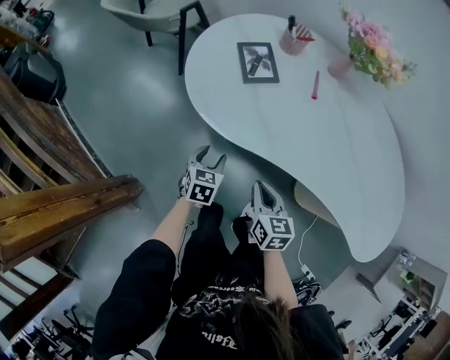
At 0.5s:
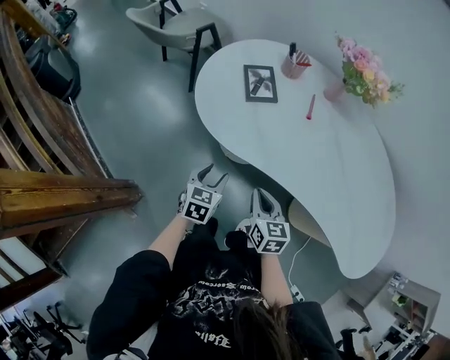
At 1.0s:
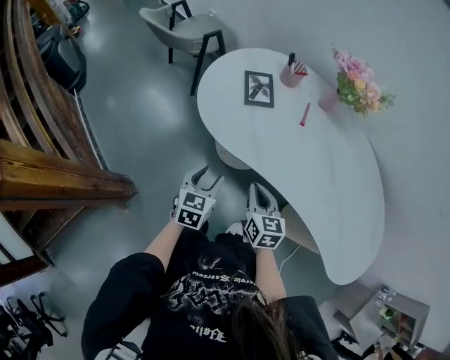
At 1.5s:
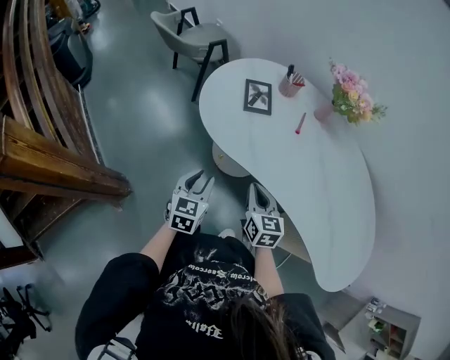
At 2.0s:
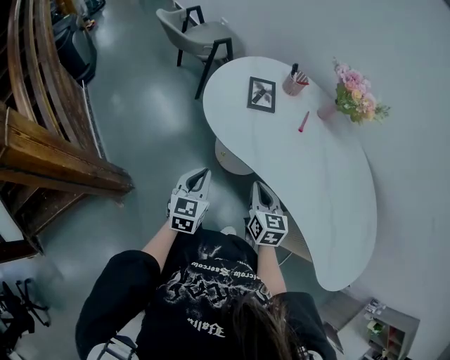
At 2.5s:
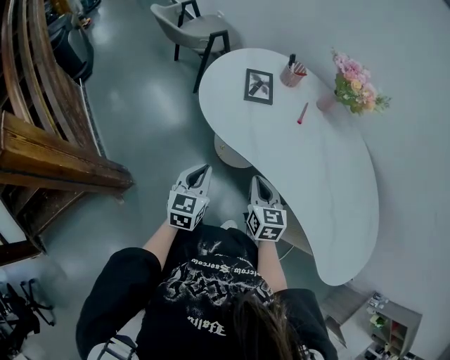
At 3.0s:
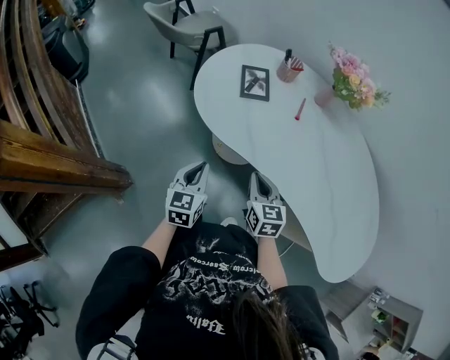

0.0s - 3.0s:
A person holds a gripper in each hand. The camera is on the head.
0.0s - 1.5s: The right gripper shifts approximately 10 cm upward, while the left gripper is displaced upward and backward by approximately 20 cm, turns by roughly 20 degrees, and closes.
1.5s - 3.0s: The left gripper closes up.

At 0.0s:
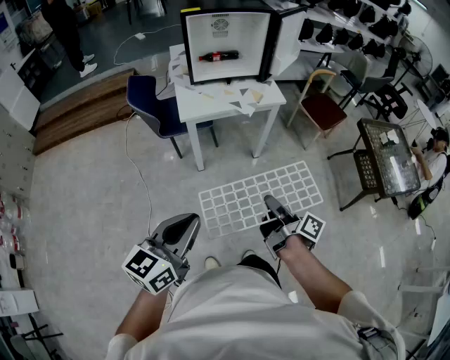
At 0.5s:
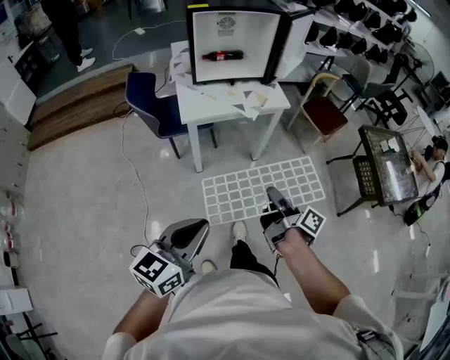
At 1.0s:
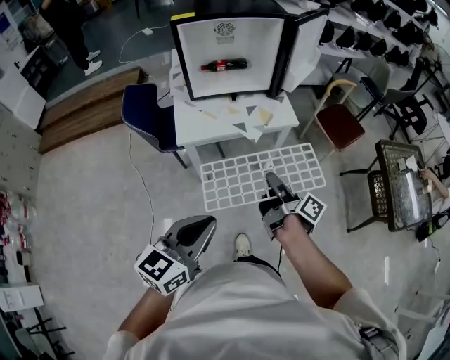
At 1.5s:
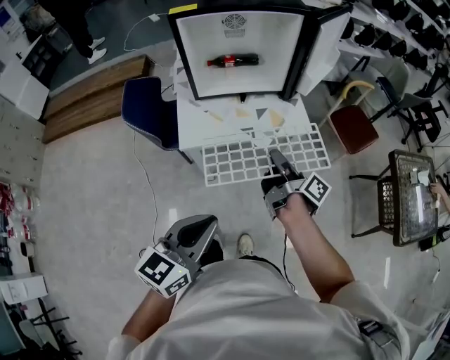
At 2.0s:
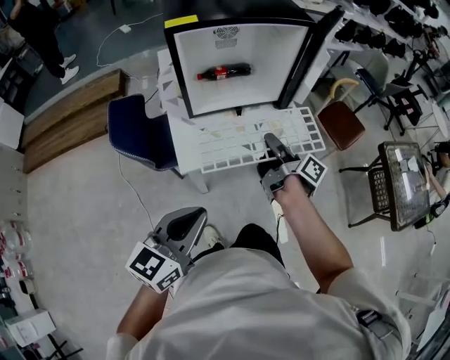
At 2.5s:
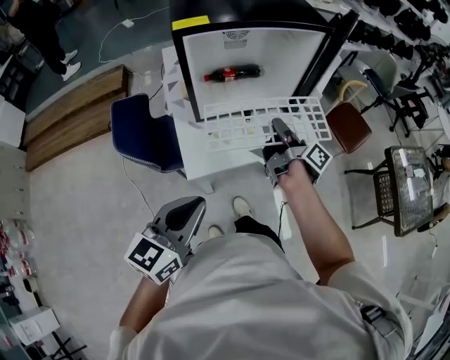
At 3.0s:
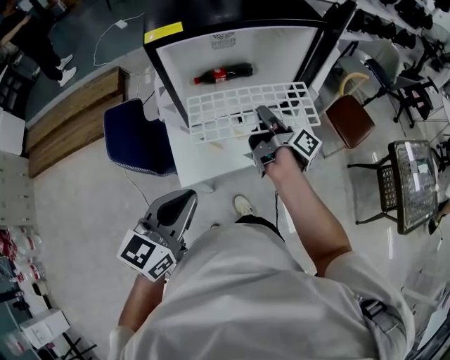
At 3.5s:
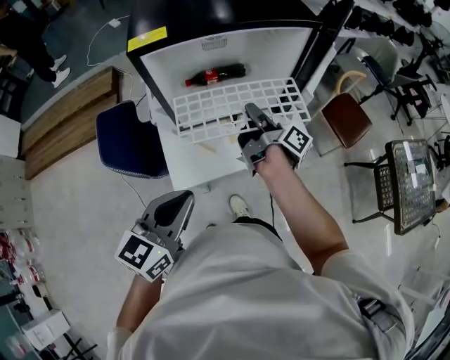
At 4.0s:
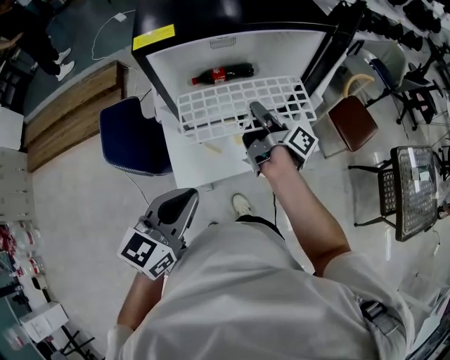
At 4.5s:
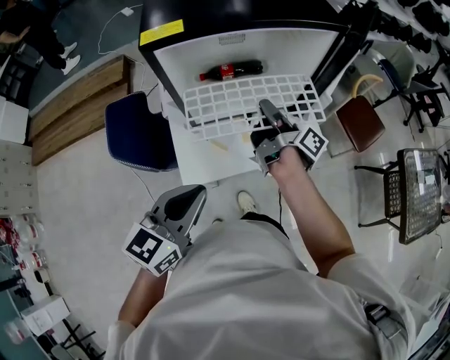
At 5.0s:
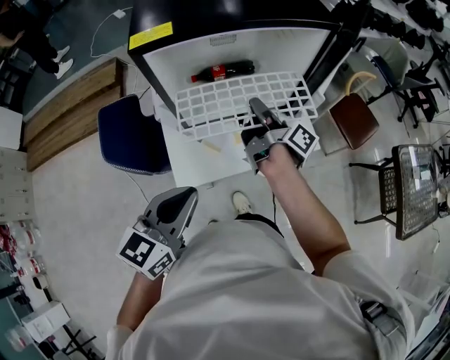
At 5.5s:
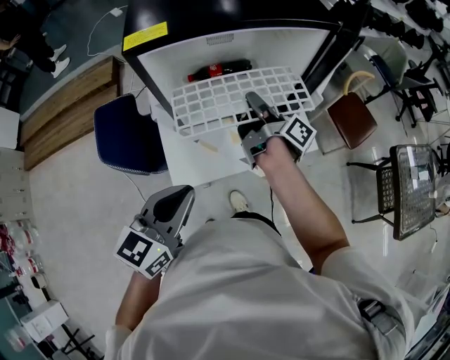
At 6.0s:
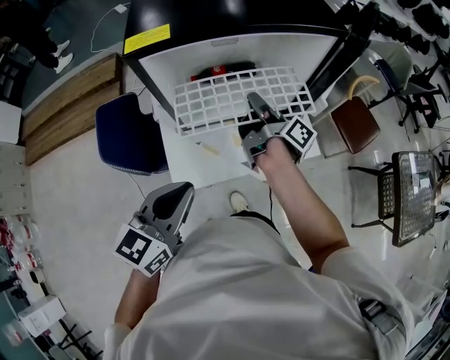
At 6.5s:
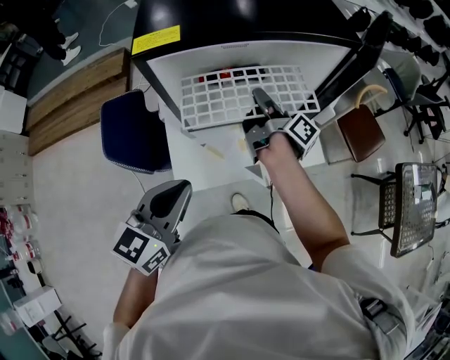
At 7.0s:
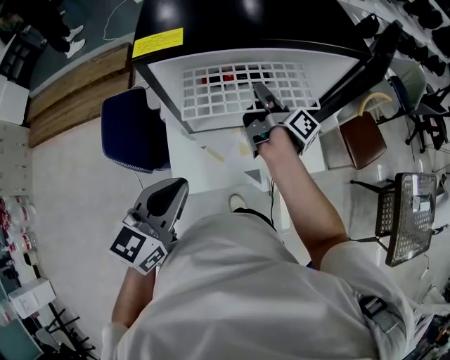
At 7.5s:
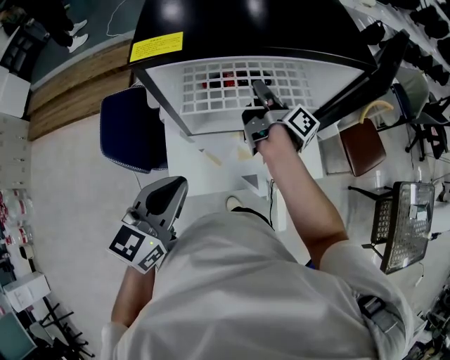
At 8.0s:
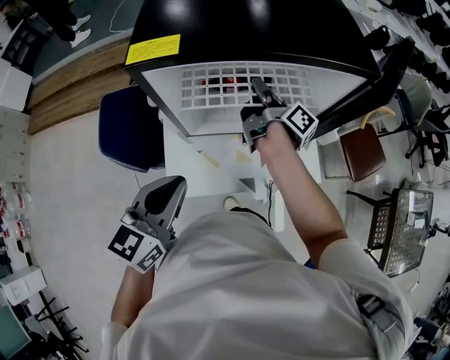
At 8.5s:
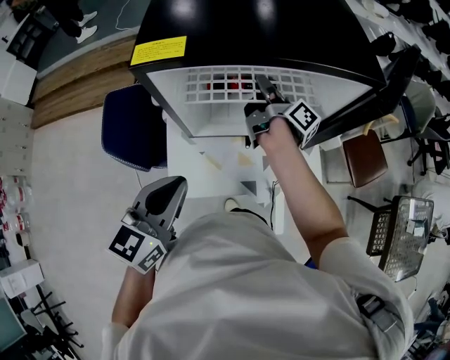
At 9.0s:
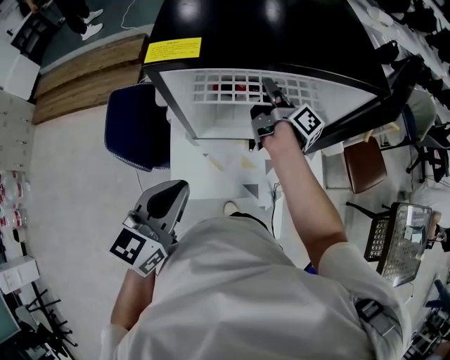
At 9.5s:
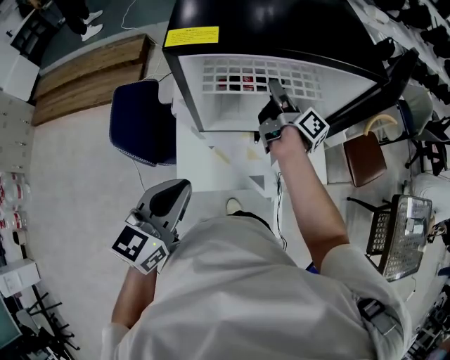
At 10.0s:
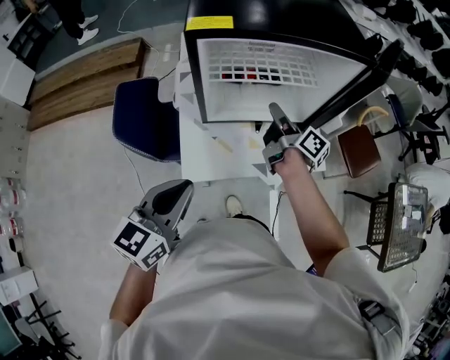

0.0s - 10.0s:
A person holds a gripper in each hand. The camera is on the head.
0.0s - 2.0s: The left gripper ends up some 35 cm from where it was.
2.0s - 4.0s: The left gripper moves some 15 cm.
6.0s - 8.0s: The left gripper ends up some 5 cm from where it was.
8.0s - 10.0s: The left gripper ends up roughly 10 cm from where it was.

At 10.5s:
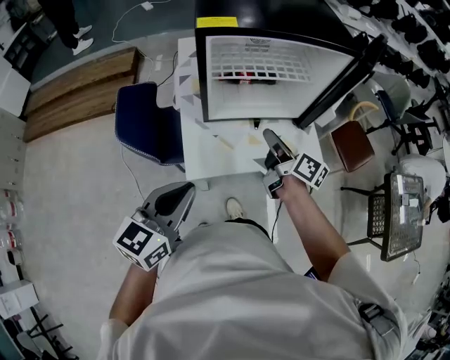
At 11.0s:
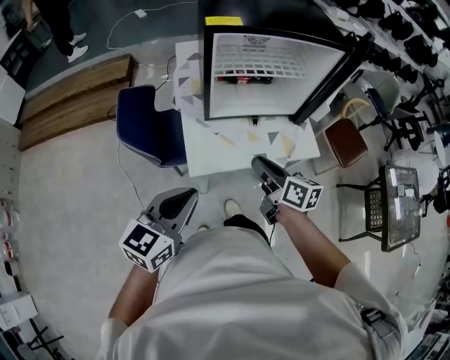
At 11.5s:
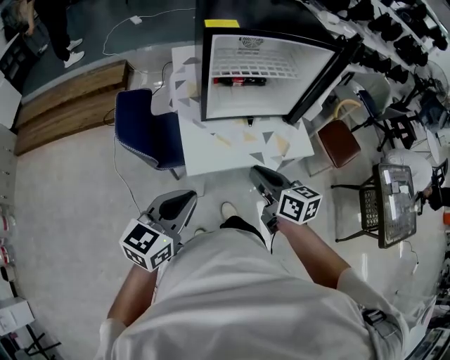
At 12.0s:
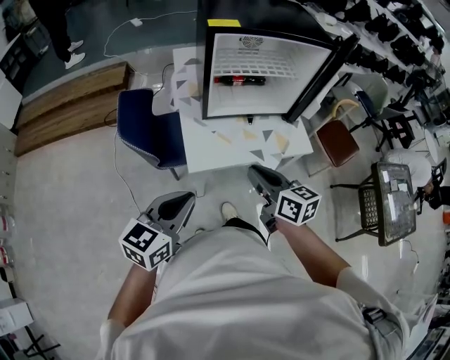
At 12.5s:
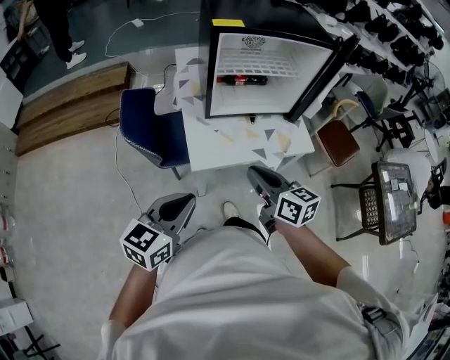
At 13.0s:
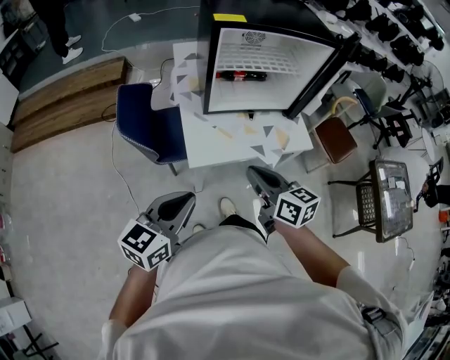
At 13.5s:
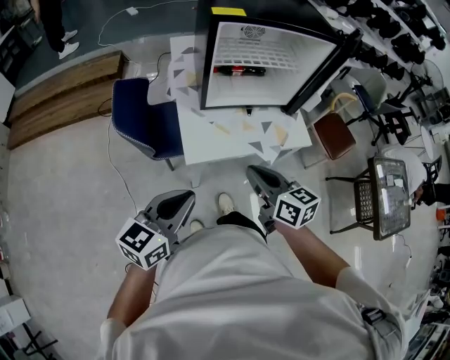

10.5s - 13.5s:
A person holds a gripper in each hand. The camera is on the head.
10.5s - 12.0s: The left gripper changes place by roughly 10 cm.

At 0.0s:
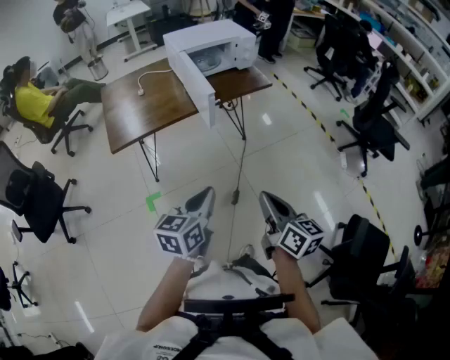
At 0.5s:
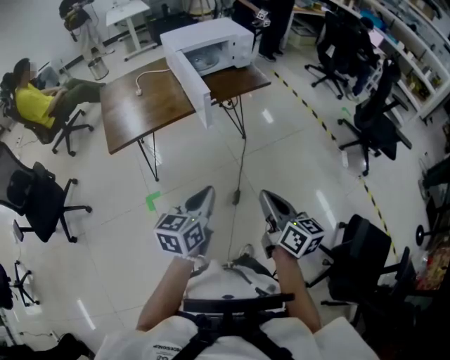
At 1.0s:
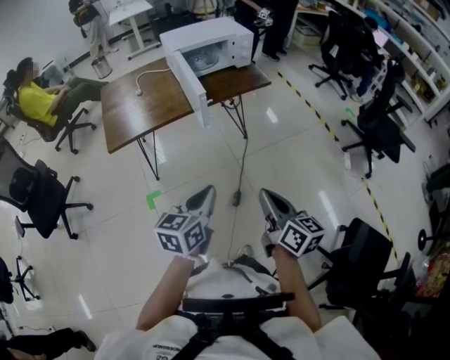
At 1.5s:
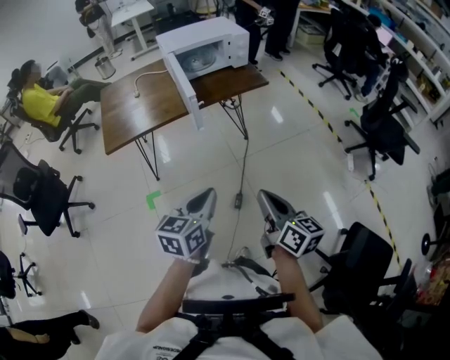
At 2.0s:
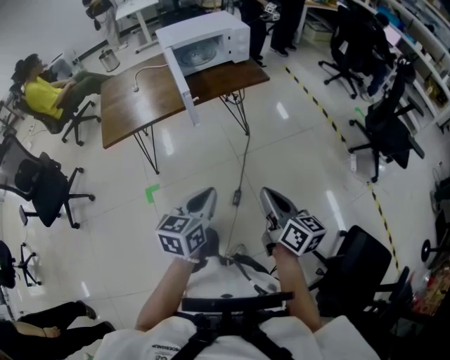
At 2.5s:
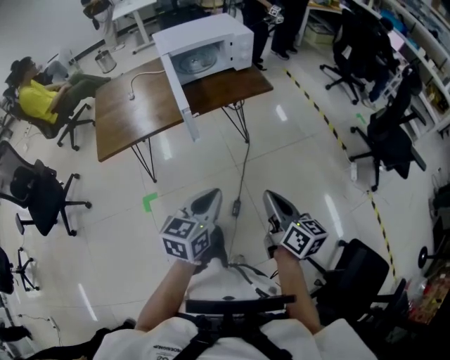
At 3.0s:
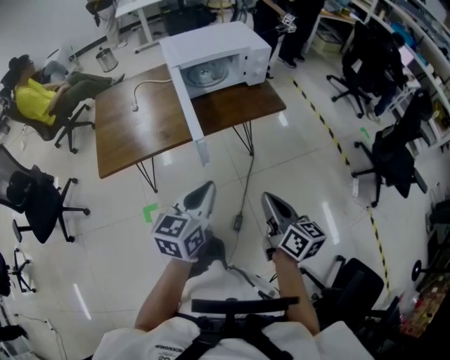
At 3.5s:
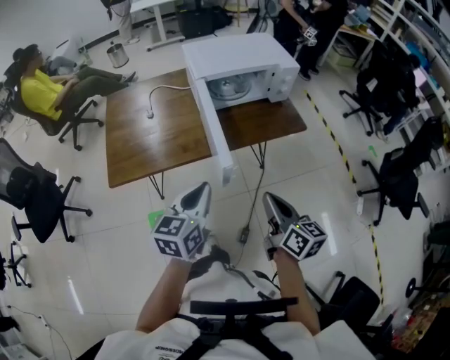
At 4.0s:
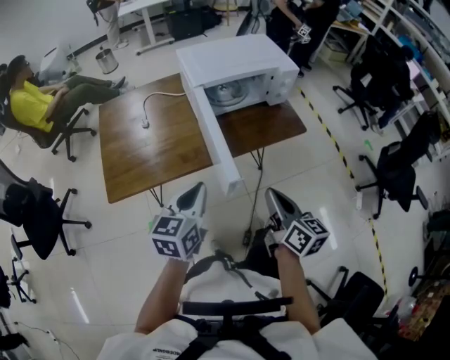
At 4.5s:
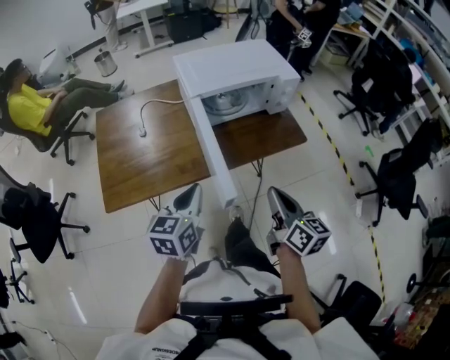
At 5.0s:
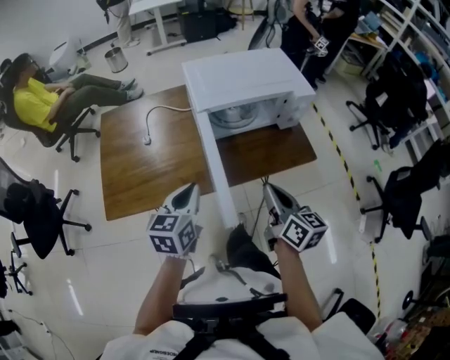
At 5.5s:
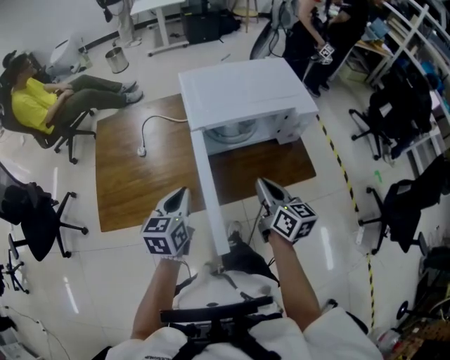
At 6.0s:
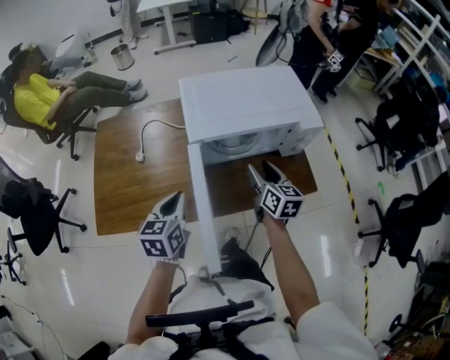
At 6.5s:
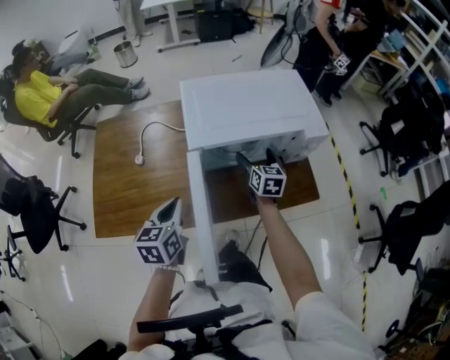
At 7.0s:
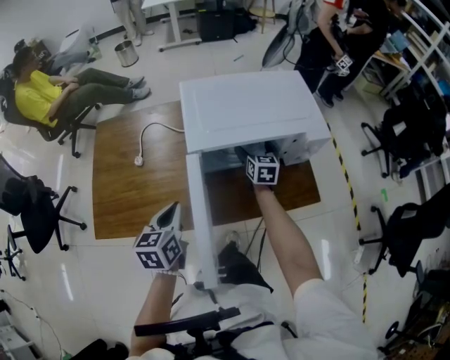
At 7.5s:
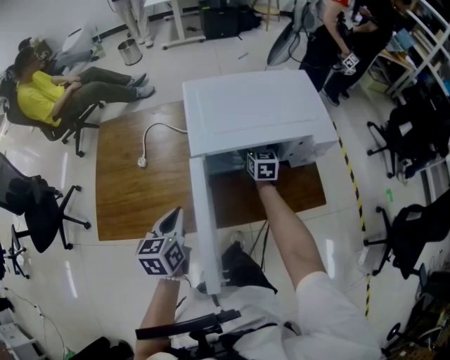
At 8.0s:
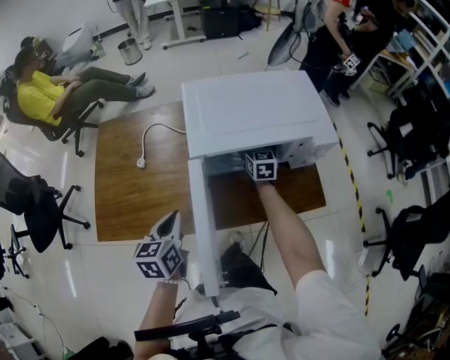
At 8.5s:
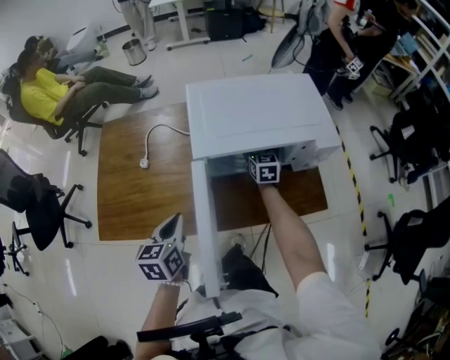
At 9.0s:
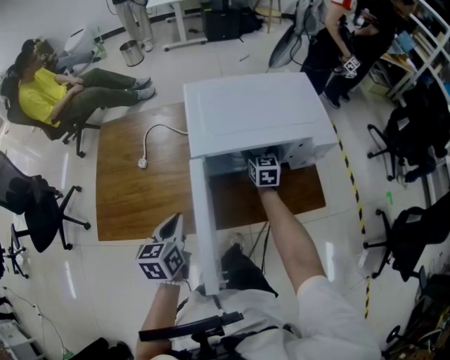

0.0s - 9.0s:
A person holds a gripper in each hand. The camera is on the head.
0.0s - 2.0s: Both grippers move to the right, roughly 15 cm.
2.0s - 4.5s: The two grippers travel together, forward, approximately 40 cm.
4.5s - 7.0s: The right gripper shifts about 50 cm forward, rotates about 30 degrees, and opens up. The left gripper is displaced forward by roughly 15 cm, and turns by approximately 20 degrees.
7.0s - 9.0s: The grippers make only small movements.

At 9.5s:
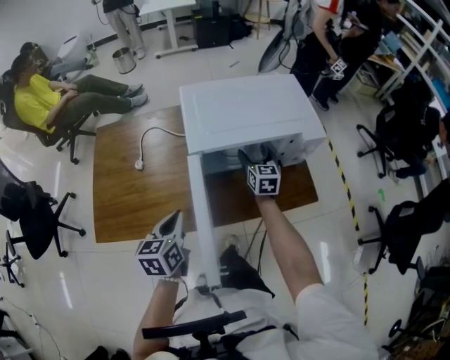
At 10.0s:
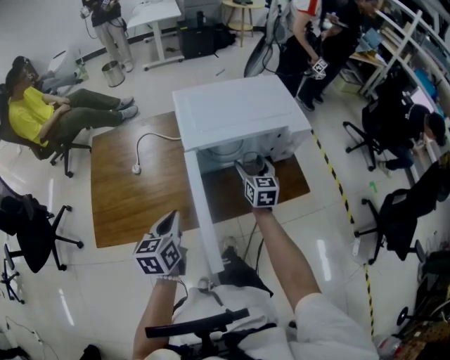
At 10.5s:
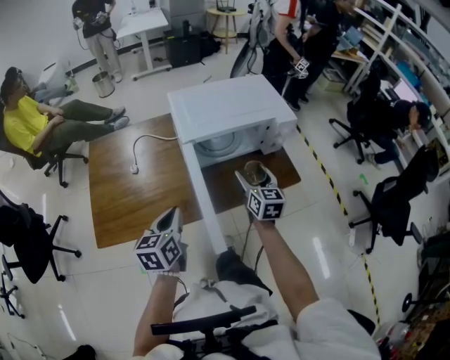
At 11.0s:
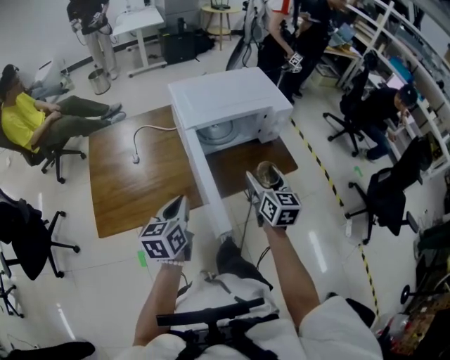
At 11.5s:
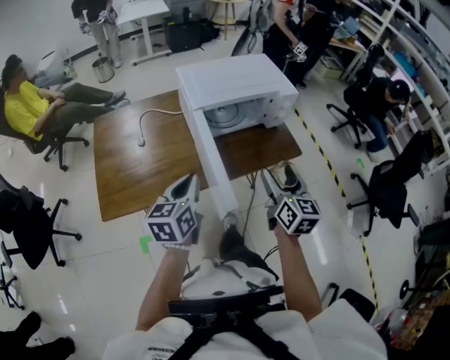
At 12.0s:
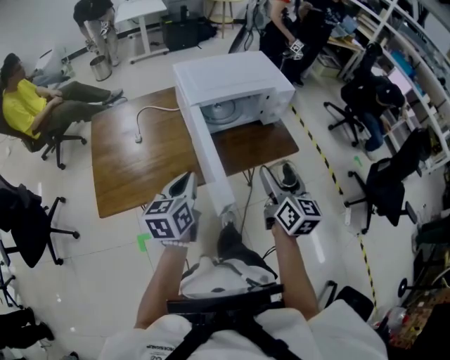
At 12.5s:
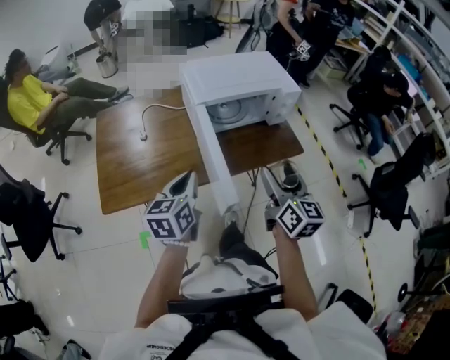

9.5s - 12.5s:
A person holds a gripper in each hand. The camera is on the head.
9.5s - 11.0s: The right gripper is displaced backward and upward by about 30 cm. Meanwhile the left gripper shifts about 10 cm backward.
11.0s - 12.5s: The right gripper shifts some 10 cm backward and upward.
